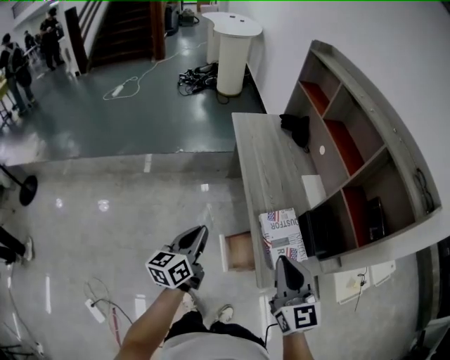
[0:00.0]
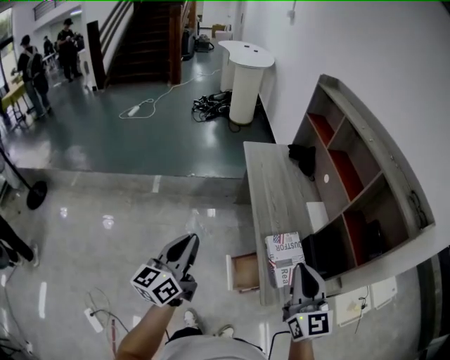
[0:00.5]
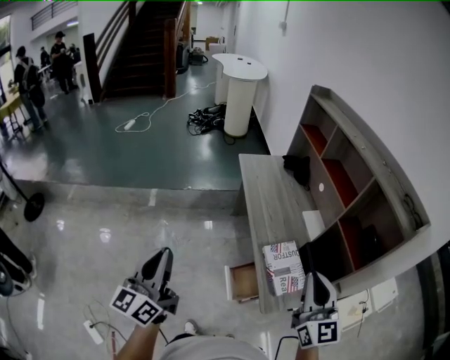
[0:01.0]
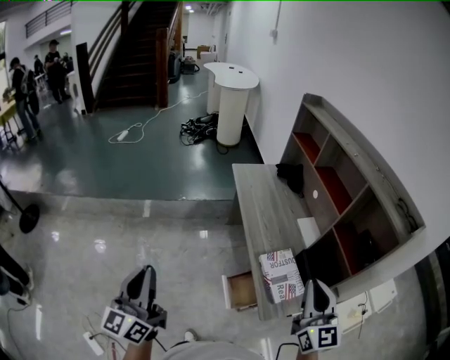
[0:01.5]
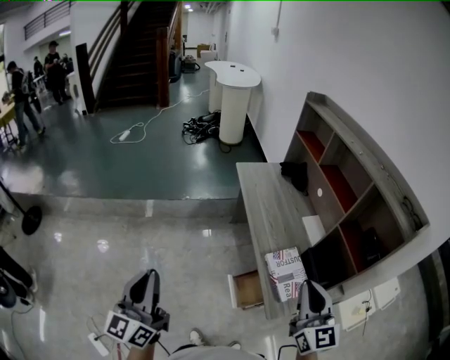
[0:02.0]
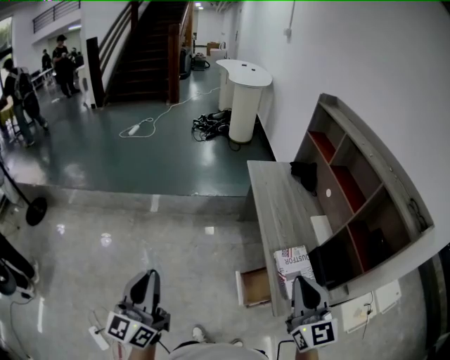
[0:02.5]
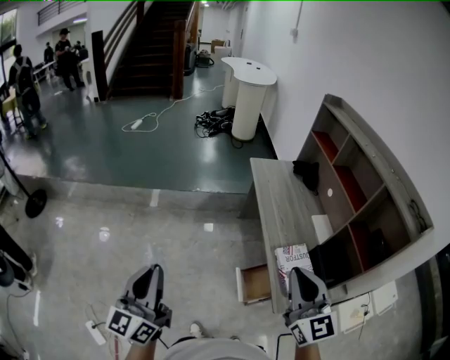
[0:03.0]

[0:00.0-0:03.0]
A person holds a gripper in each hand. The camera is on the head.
0:00.0 to 0:01.5: The left gripper is displaced upward, to the left and backward by about 25 cm, and swivels approximately 30 degrees, while the right gripper travels upward by some 10 cm.
0:01.5 to 0:03.0: The right gripper shifts approximately 15 cm to the left. The left gripper shifts by about 5 cm.

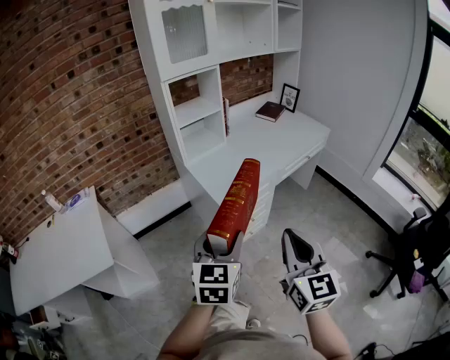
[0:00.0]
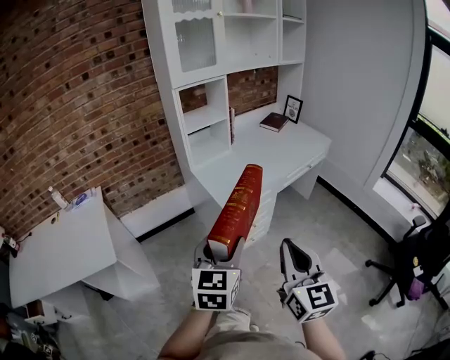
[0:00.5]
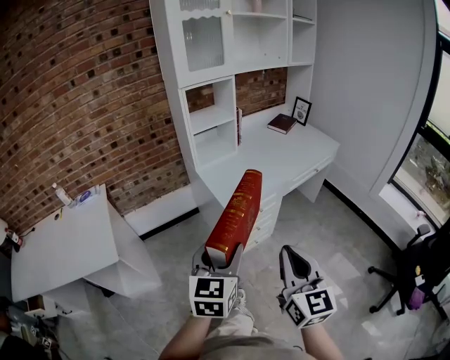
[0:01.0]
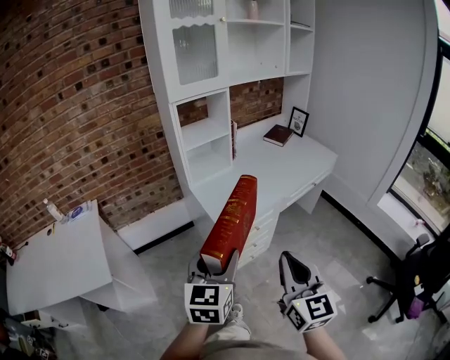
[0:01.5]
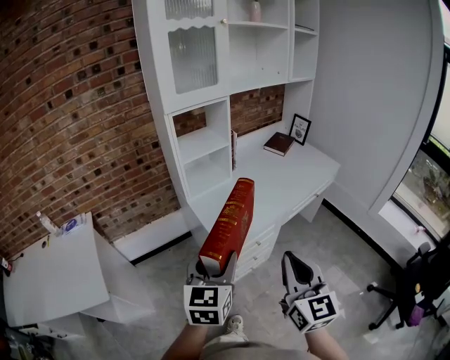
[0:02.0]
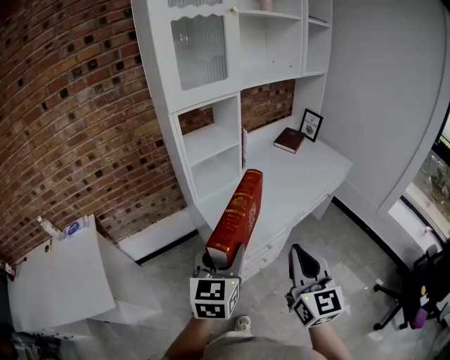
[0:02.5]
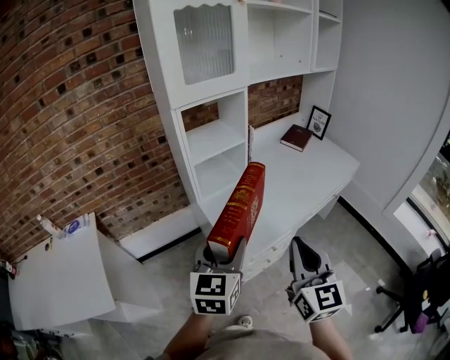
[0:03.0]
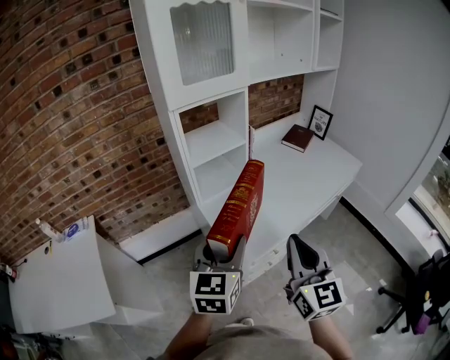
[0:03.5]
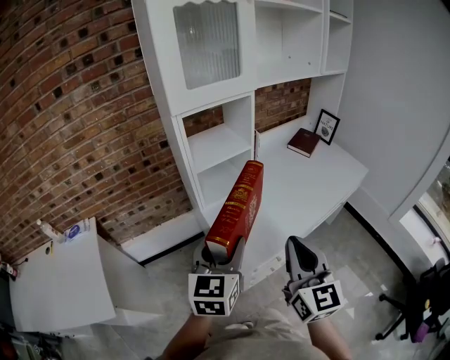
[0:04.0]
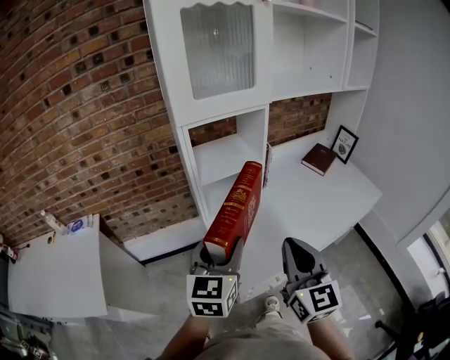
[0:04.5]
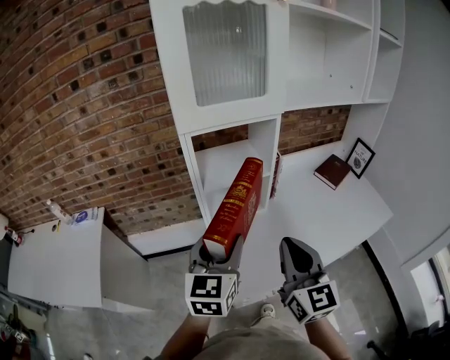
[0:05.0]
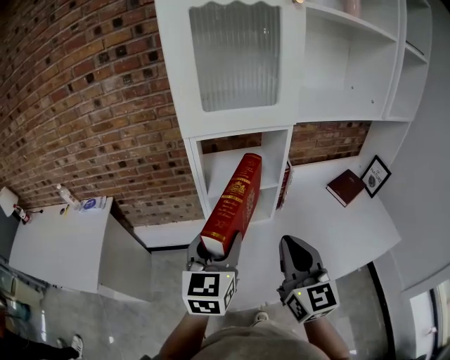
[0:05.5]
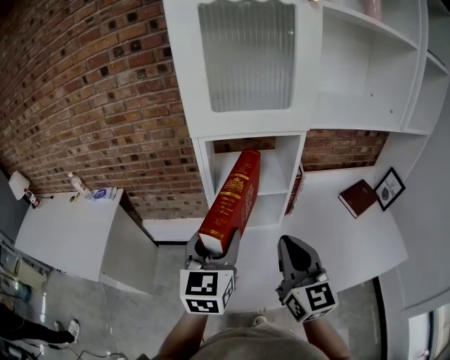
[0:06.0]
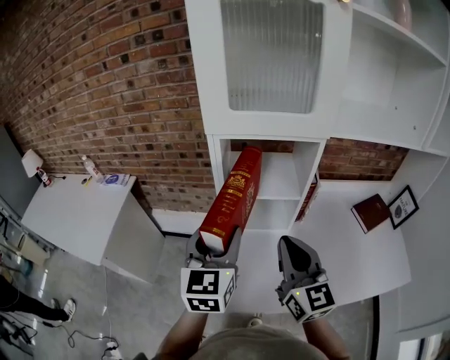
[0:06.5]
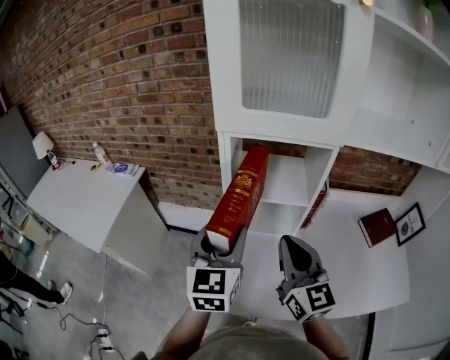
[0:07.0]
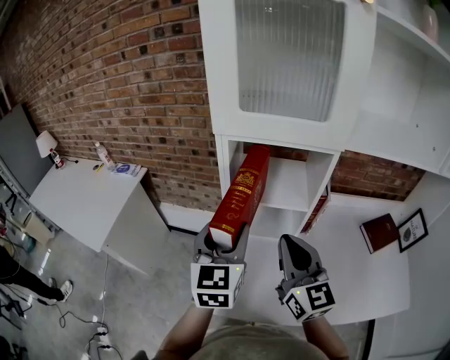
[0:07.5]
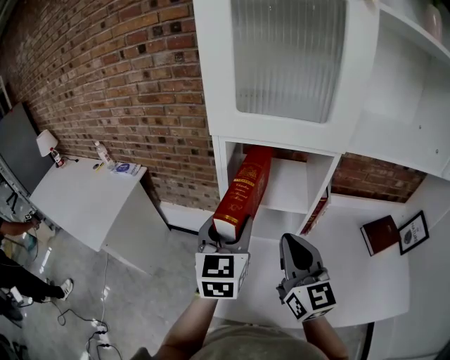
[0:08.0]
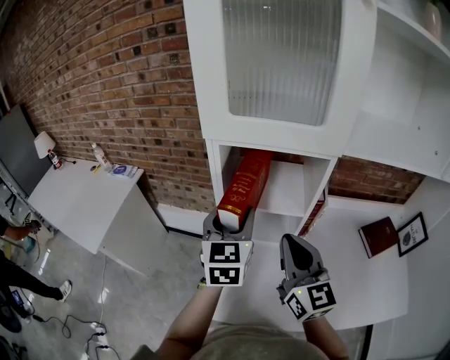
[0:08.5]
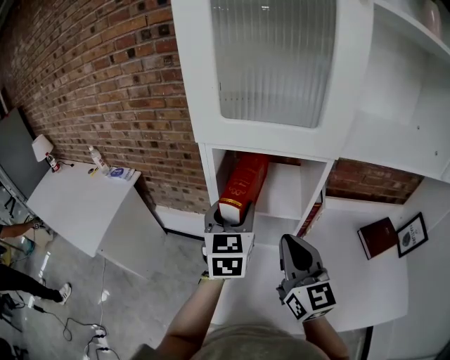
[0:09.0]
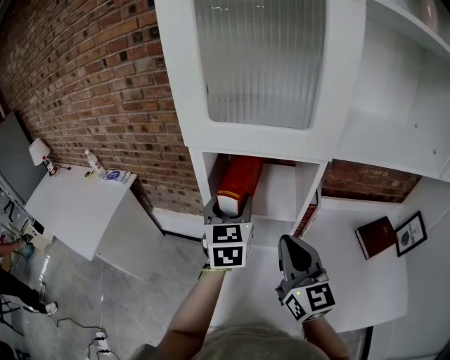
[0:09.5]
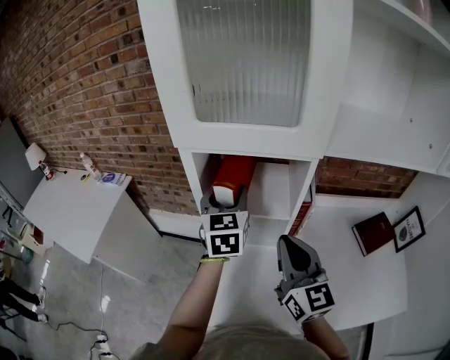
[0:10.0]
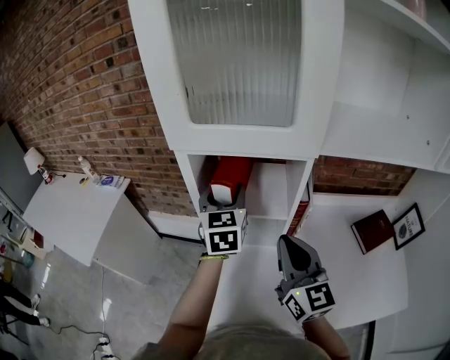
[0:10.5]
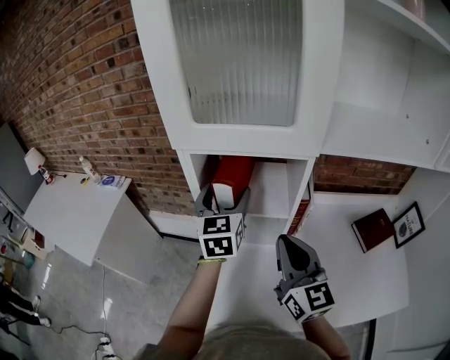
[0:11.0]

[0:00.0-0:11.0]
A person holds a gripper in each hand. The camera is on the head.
0:00.0 to 0:02.0: Both grippers travel together forward, some 10 cm.
0:02.0 to 0:03.5: Both grippers travel together forward, some 15 cm.
0:03.5 to 0:05.5: The grippers both shift forward by approximately 20 cm. The left gripper rotates roughly 20 degrees. The right gripper rotates approximately 30 degrees.
0:05.5 to 0:07.5: The right gripper is displaced forward by approximately 10 cm, and turns by roughly 20 degrees. The left gripper heads forward, covering approximately 5 cm, and turns by about 20 degrees.
0:07.5 to 0:09.0: The left gripper is displaced forward and to the right by roughly 10 cm.
0:09.0 to 0:11.0: The left gripper moves roughly 5 cm, and opens up.

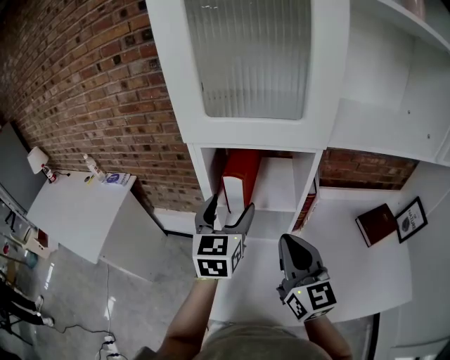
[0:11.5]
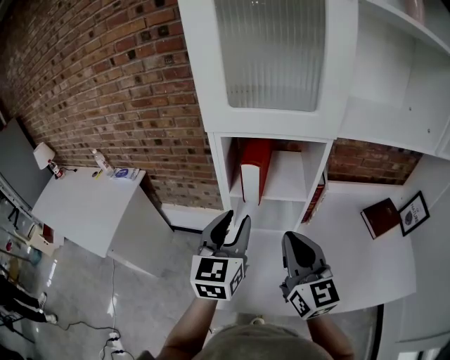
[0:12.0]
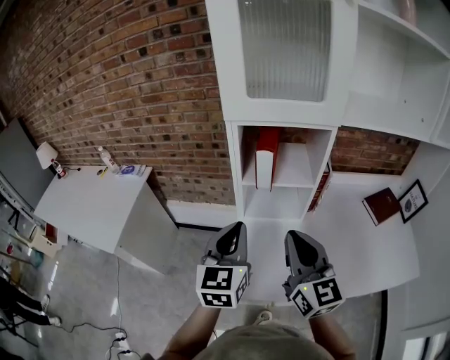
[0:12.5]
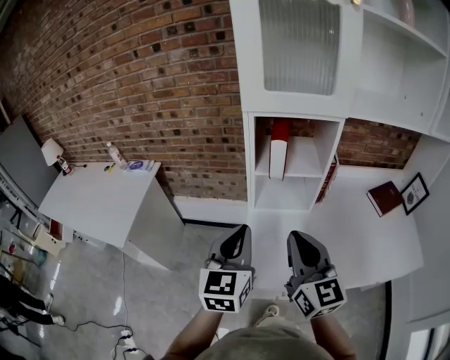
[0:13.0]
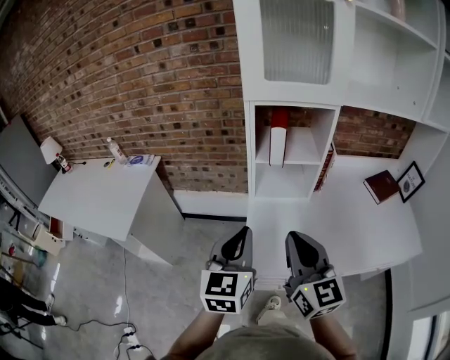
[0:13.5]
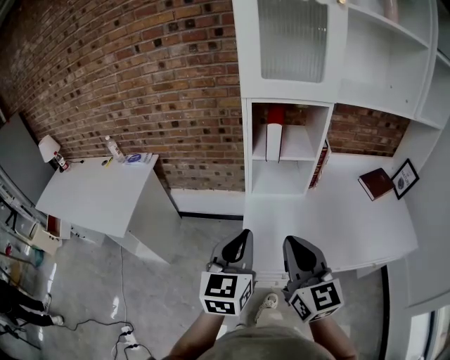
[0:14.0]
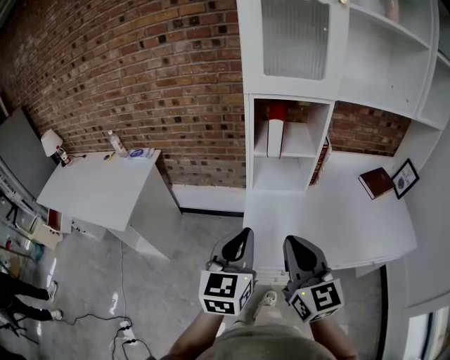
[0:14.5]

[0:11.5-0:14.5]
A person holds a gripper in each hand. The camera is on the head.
0:11.5 to 0:13.0: The grippers both shift backward and to the left by approximately 20 cm. The left gripper closes up.
0:13.0 to 0:14.5: Both grippers travel together backward, about 10 cm.

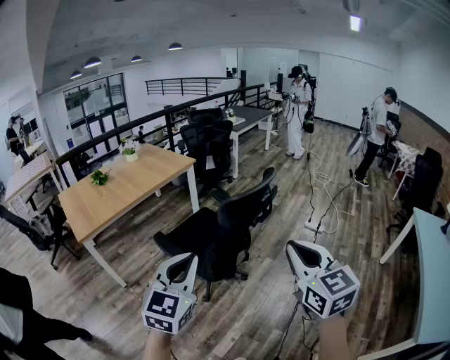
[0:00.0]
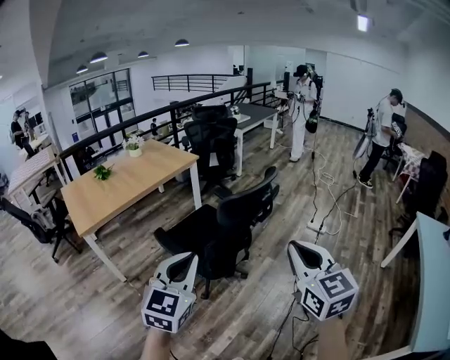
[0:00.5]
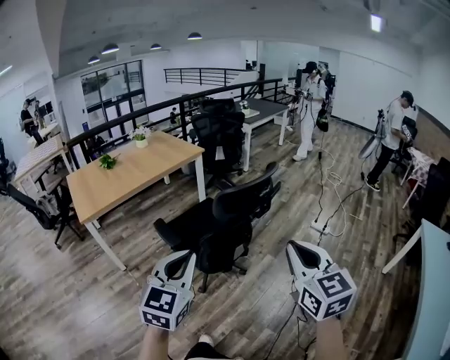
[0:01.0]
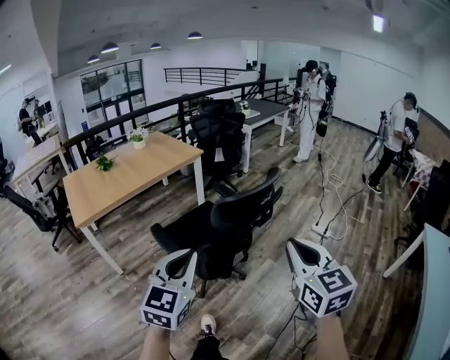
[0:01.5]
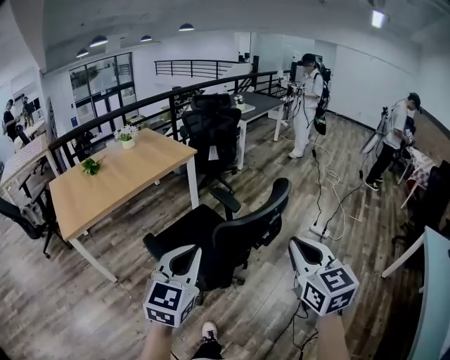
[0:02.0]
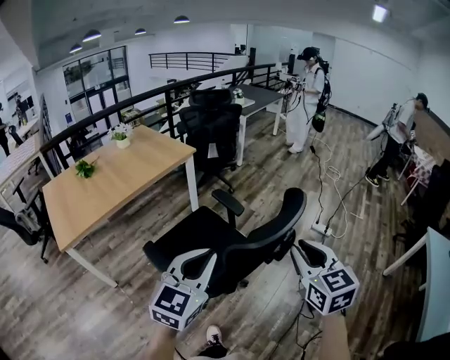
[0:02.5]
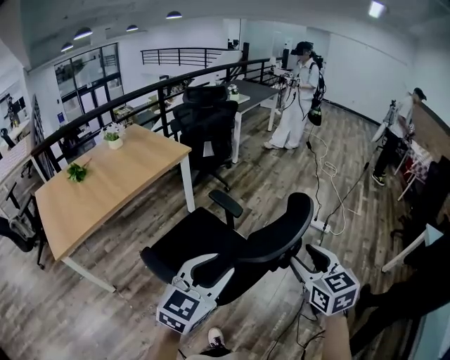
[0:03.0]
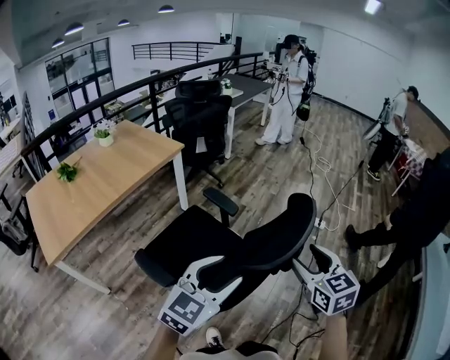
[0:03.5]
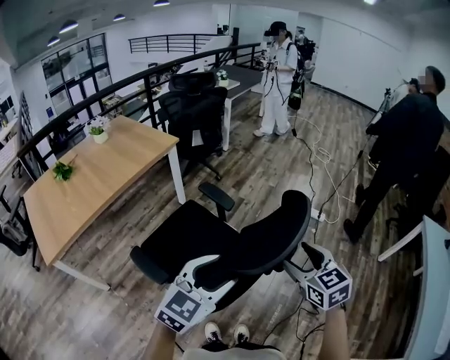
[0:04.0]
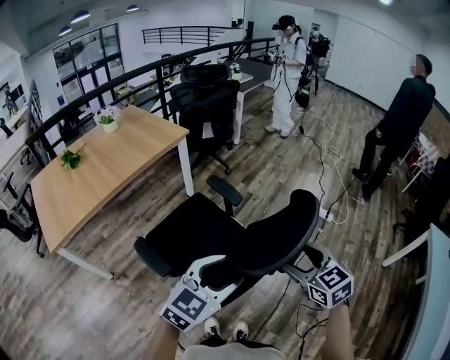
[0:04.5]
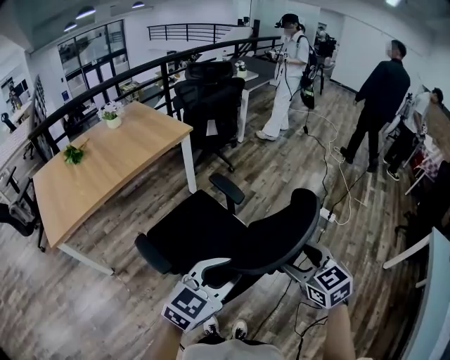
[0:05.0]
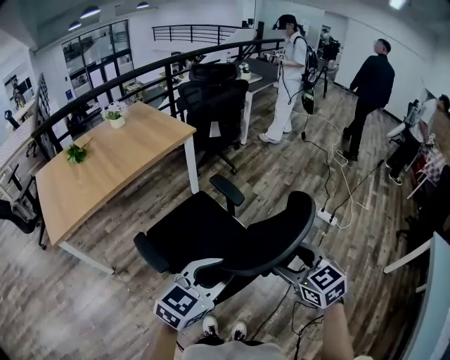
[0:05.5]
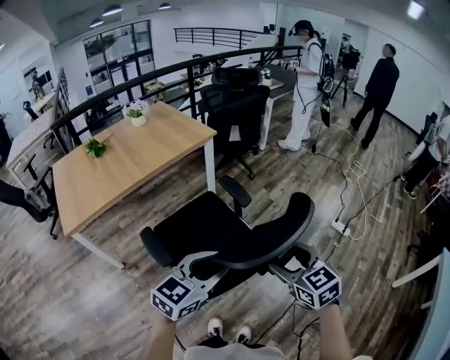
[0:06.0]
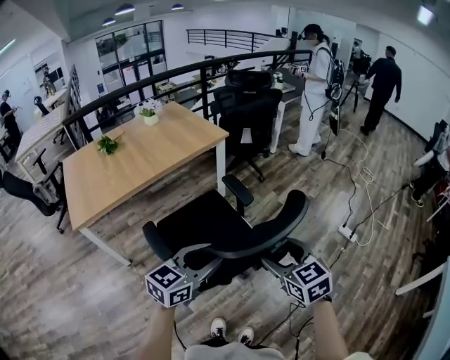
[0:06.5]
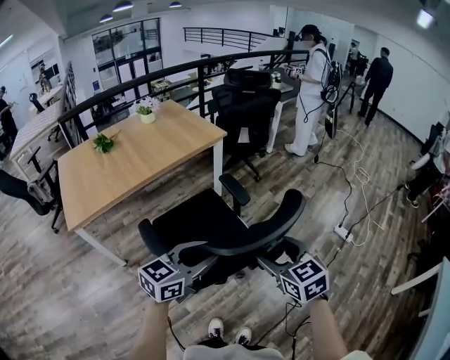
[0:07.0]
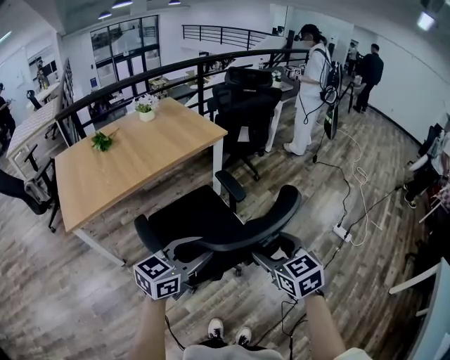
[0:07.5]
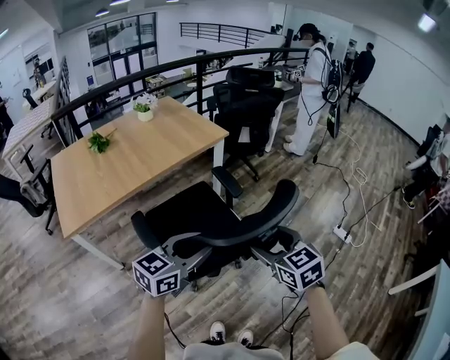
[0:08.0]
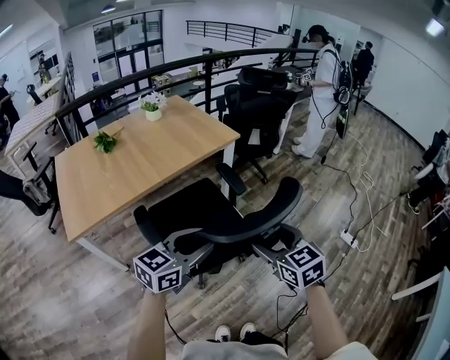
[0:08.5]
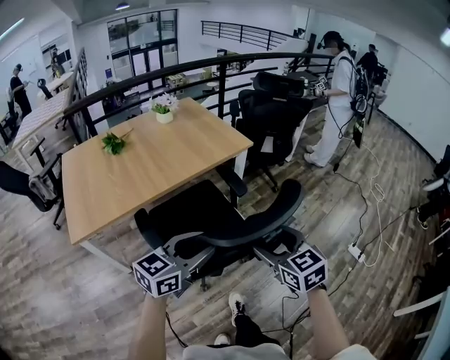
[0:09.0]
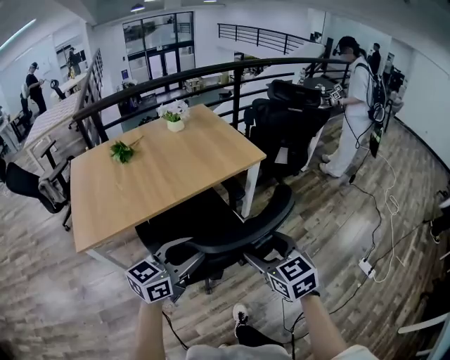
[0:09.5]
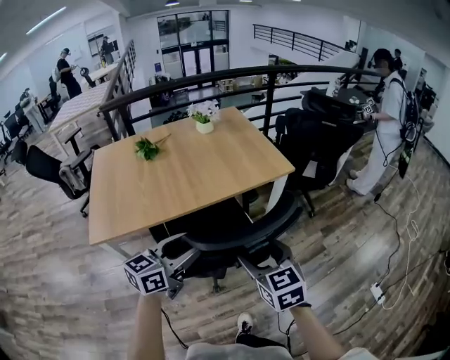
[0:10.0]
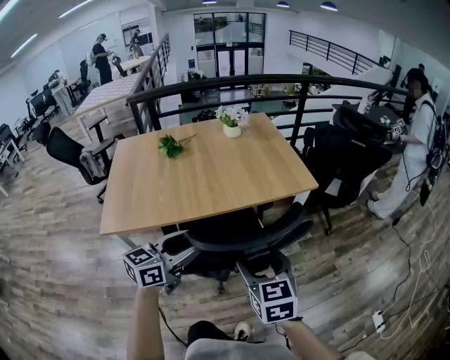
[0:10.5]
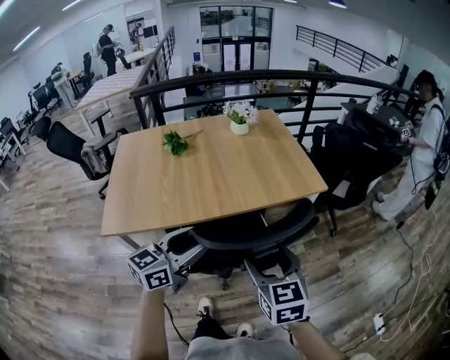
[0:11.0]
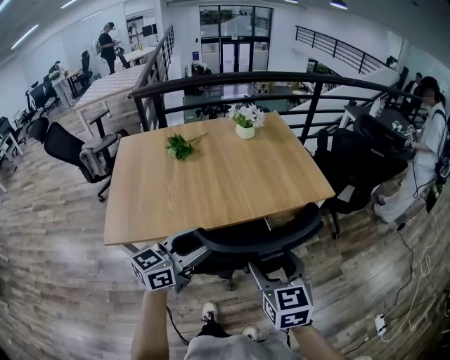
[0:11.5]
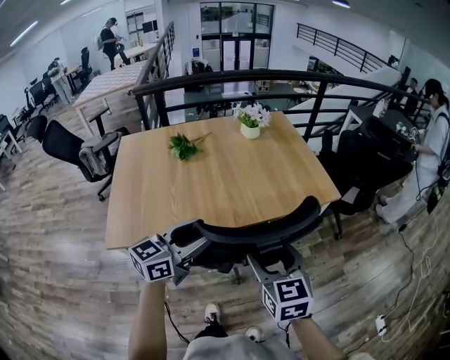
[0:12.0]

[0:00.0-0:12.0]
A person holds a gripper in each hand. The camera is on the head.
0:00.0 to 0:02.0: The grippers both shift forward by approximately 15 cm.
0:02.0 to 0:04.0: Both grippers move forward and downward, approximately 15 cm. The right gripper opens, while the left gripper rotates about 30 degrees, and opens up.
0:04.0 to 0:06.0: The left gripper shifts approximately 5 cm to the left, and closes, while the right gripper is displaced to the left by some 10 cm, and rotates approximately 20 degrees.
0:06.0 to 0:08.0: The grippers both shift to the left and forward by roughly 15 cm.
0:08.0 to 0:10.0: Both grippers travel together forward and to the left, about 25 cm. The left gripper turns by approximately 30 degrees.
0:10.0 to 0:12.0: The grippers both shift to the left and forward by roughly 20 cm.
